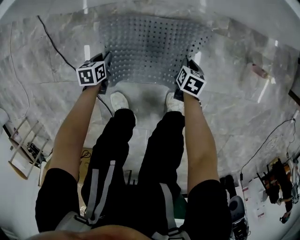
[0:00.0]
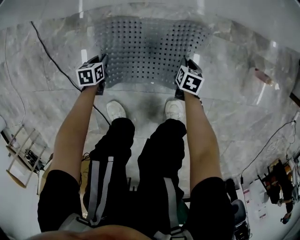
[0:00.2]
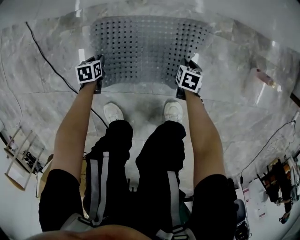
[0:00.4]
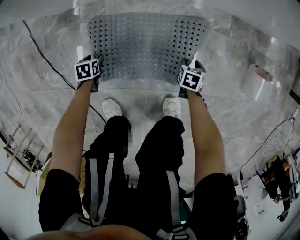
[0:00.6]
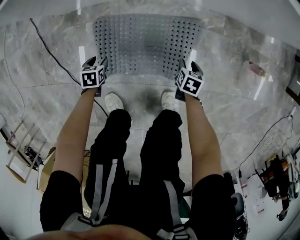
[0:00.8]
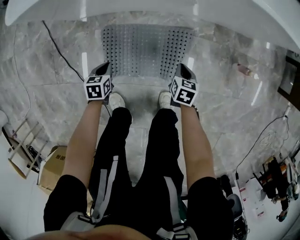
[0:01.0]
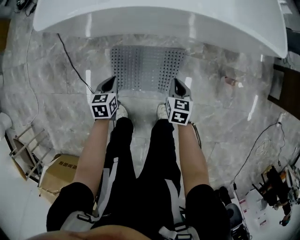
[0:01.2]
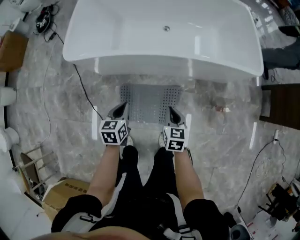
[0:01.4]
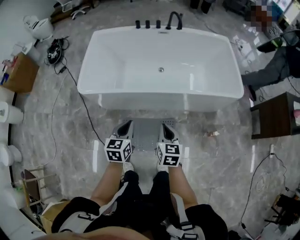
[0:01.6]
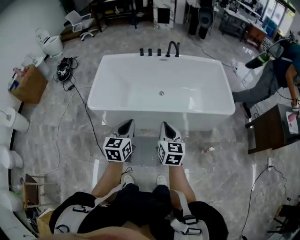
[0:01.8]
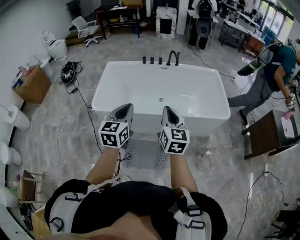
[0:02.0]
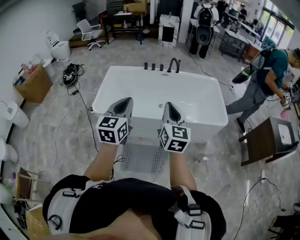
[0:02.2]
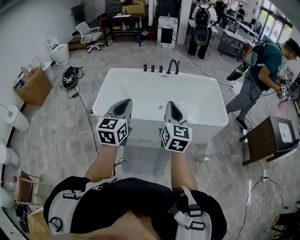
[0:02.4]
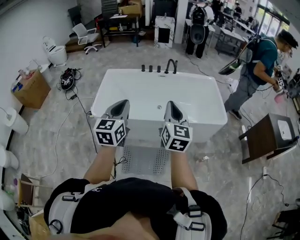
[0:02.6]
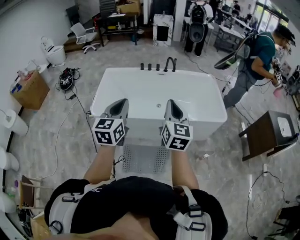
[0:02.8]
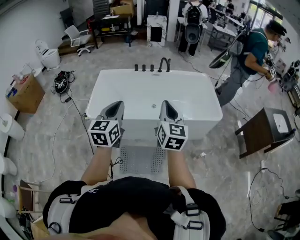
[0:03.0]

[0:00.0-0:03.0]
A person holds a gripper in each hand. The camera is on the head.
0:00.0 to 0:01.6: Both grippers travel together upward, approximately 60 cm. The left gripper tilts its fingers some 30 degrees upward, and opens, then closes once more; the right gripper tips its fingers upward by about 40 degrees, and opens and closes again.
0:01.6 to 0:03.0: Both grippers travel together upward, about 35 cm. The right gripper changes its angle by roughly 30 degrees. Meanwhile the left gripper turns by approximately 30 degrees.

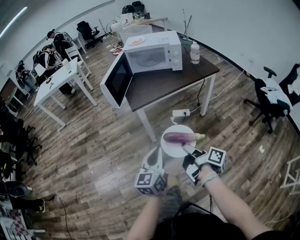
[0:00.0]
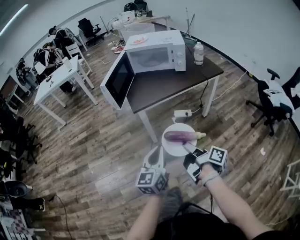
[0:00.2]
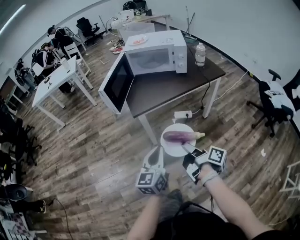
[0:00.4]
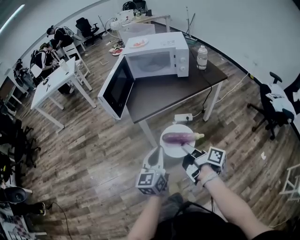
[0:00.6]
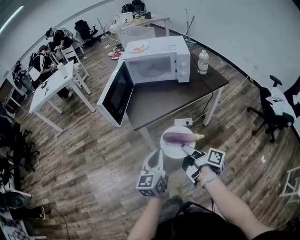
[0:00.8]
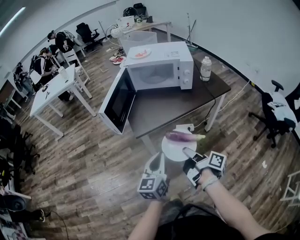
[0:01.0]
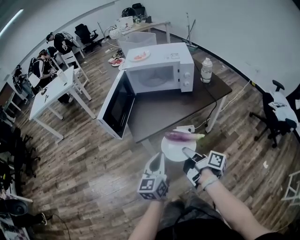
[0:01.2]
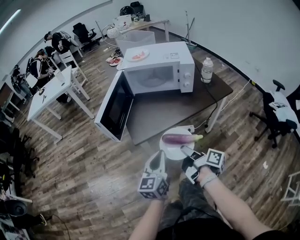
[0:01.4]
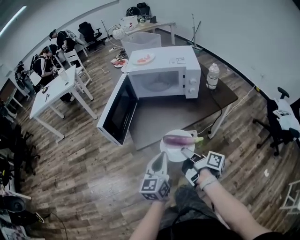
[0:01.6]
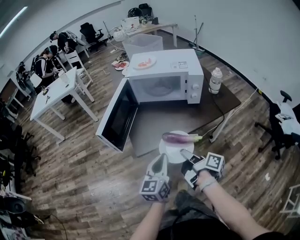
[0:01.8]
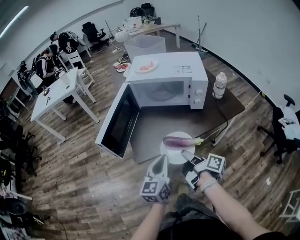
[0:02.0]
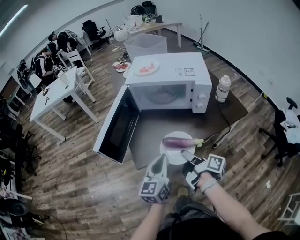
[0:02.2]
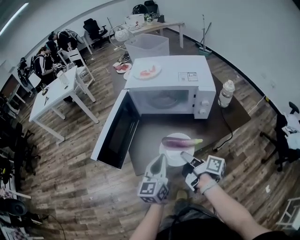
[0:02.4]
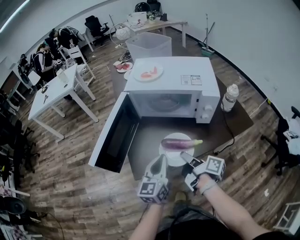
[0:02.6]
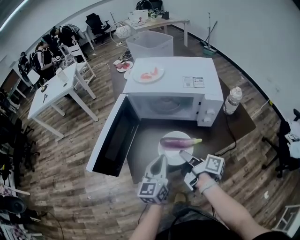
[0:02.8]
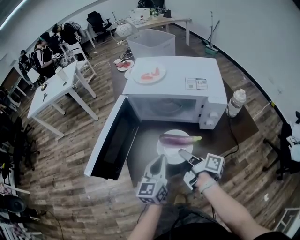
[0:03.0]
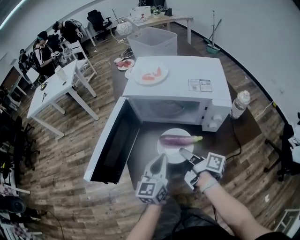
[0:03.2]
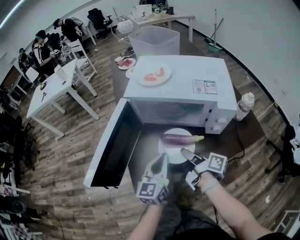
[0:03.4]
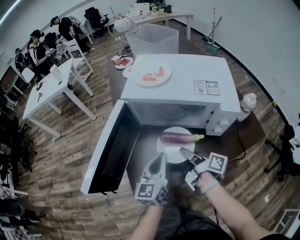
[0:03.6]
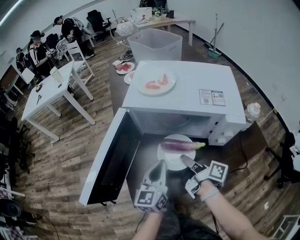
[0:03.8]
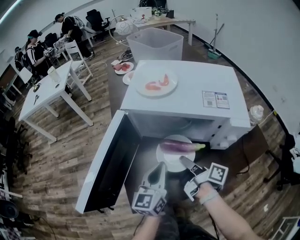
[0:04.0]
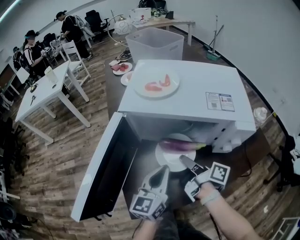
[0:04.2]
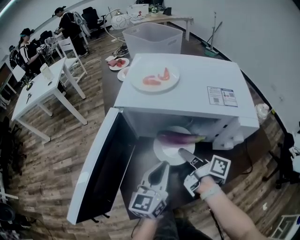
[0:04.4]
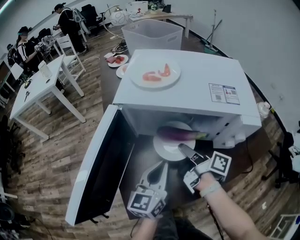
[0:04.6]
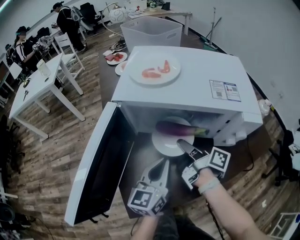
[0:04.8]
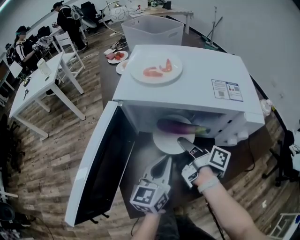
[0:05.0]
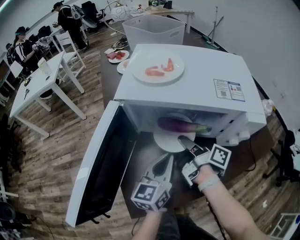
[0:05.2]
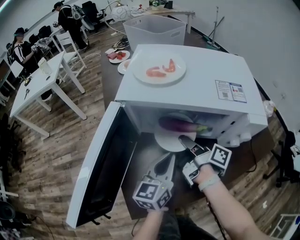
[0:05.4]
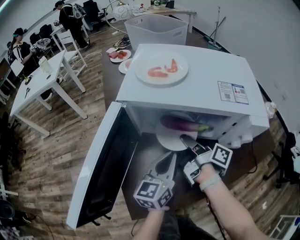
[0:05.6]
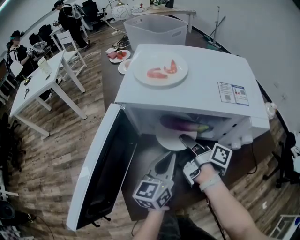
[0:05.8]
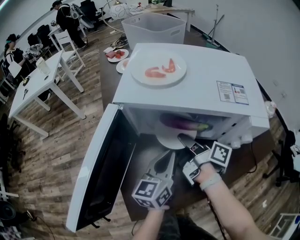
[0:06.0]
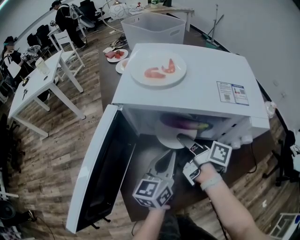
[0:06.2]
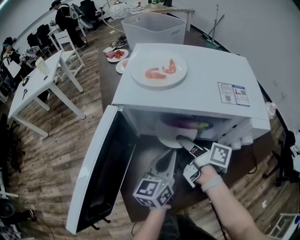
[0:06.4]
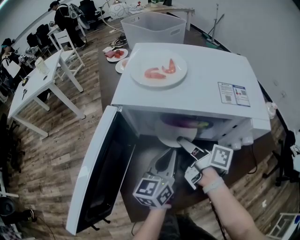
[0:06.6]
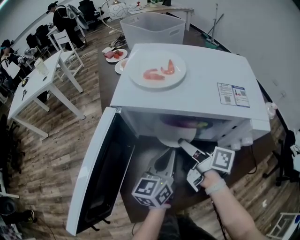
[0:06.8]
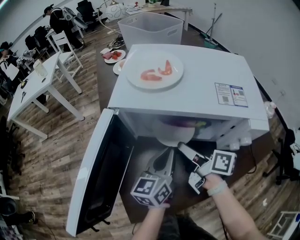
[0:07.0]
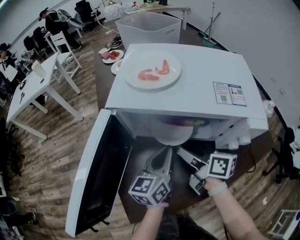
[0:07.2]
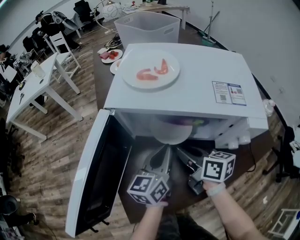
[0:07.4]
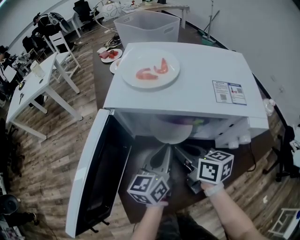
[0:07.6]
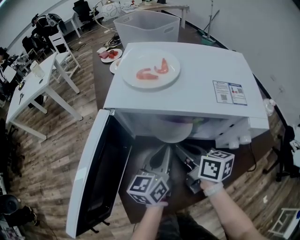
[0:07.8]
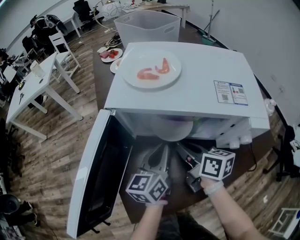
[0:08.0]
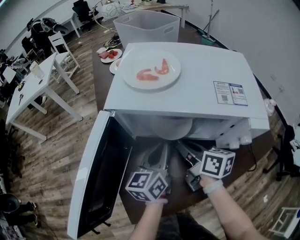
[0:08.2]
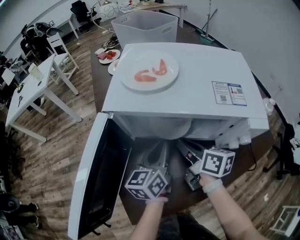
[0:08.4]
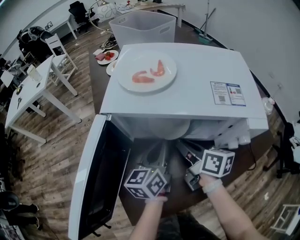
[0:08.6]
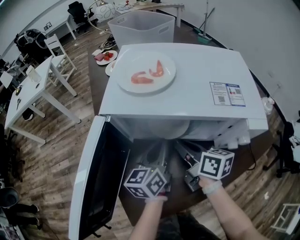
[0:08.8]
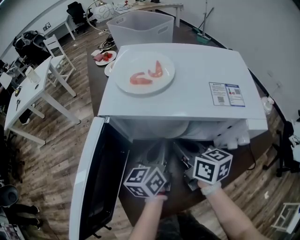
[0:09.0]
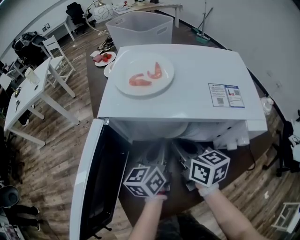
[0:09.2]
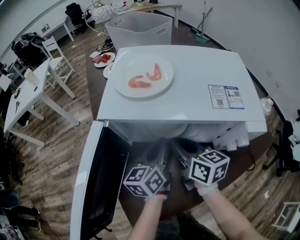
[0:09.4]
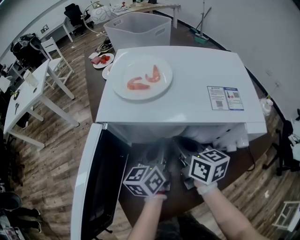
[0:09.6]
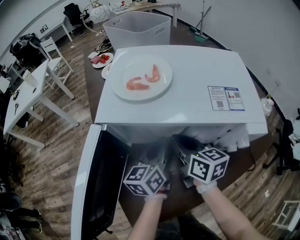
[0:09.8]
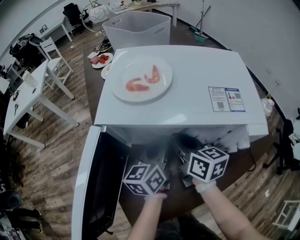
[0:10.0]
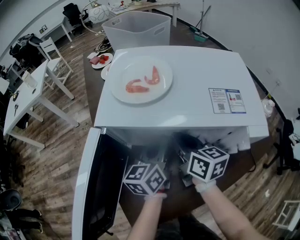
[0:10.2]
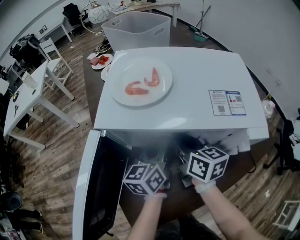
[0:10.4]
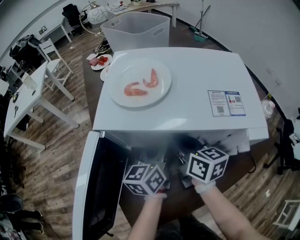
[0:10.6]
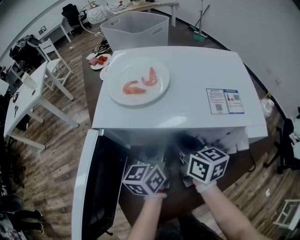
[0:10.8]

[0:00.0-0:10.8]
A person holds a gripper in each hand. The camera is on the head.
0:00.0 to 0:01.6: Both grippers move forward, approximately 25 cm.
0:01.6 to 0:03.0: The grippers both shift forward by roughly 25 cm.
0:03.0 to 0:04.6: The two grippers go about 15 cm forward.
0:04.6 to 0:06.2: The left gripper shifts by about 5 cm.
0:06.2 to 0:07.8: The right gripper turns by some 40 degrees.
0:07.8 to 0:09.2: The grippers stay close to where they were, moving slightly.
0:09.2 to 0:10.8: The grippers stay close to where they were, moving slightly.

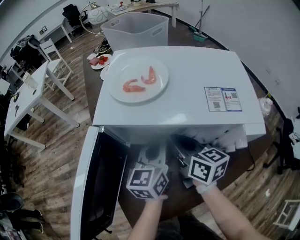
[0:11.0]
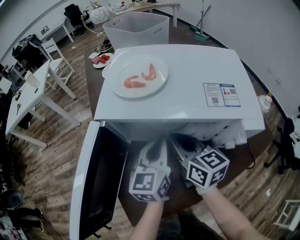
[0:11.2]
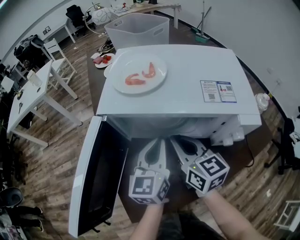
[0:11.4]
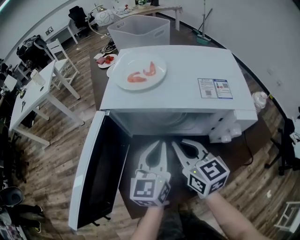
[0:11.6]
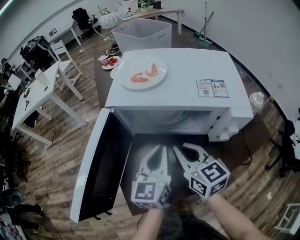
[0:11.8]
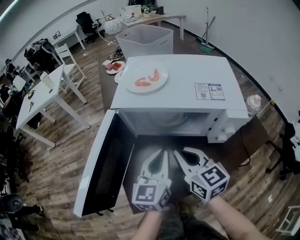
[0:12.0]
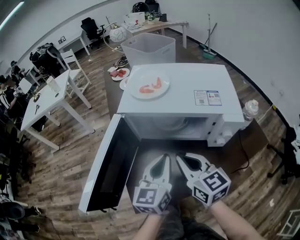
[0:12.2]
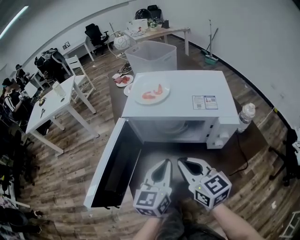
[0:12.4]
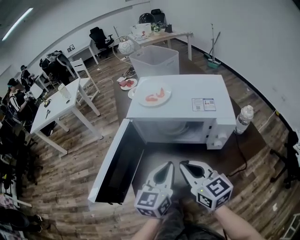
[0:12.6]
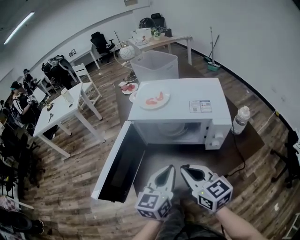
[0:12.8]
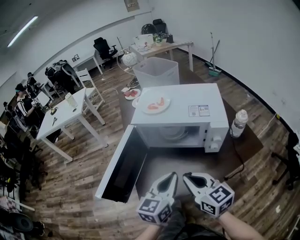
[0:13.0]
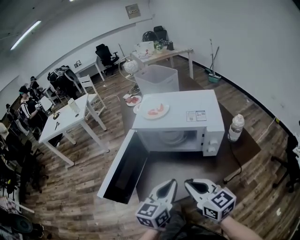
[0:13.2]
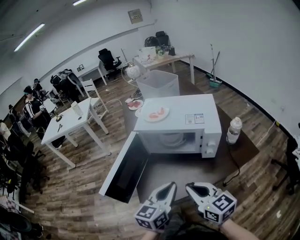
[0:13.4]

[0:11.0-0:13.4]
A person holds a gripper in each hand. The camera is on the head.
0:11.0 to 0:12.2: The two grippers go about 15 cm backward and upward. The right gripper changes its angle by roughly 20 degrees.
0:12.2 to 0:13.4: Both grippers travel together backward, about 15 cm.

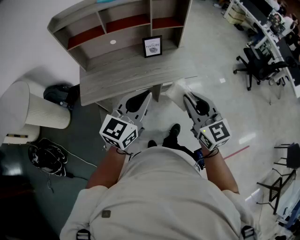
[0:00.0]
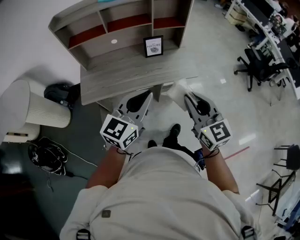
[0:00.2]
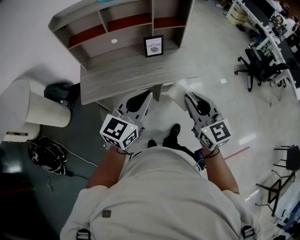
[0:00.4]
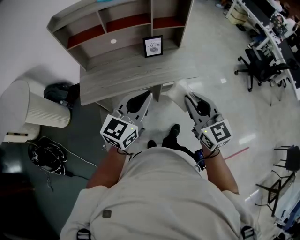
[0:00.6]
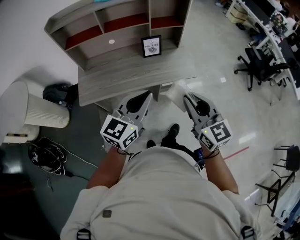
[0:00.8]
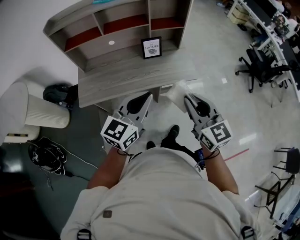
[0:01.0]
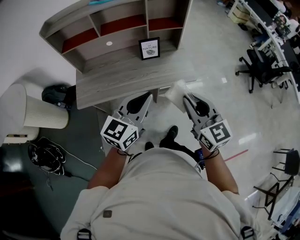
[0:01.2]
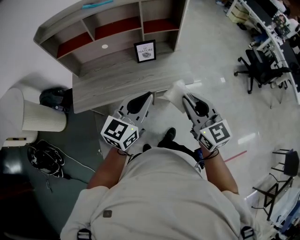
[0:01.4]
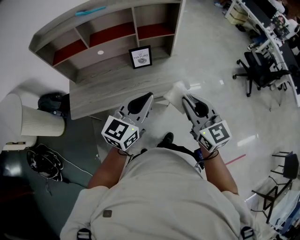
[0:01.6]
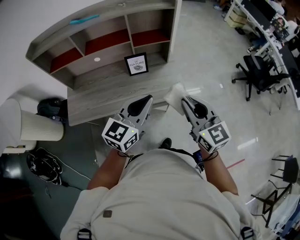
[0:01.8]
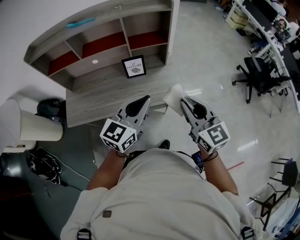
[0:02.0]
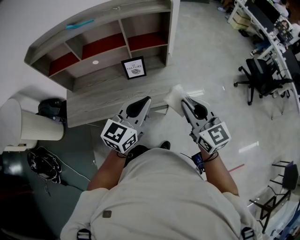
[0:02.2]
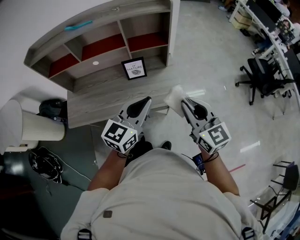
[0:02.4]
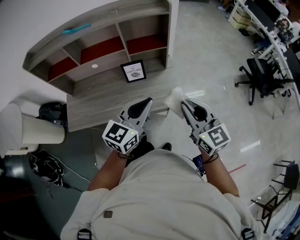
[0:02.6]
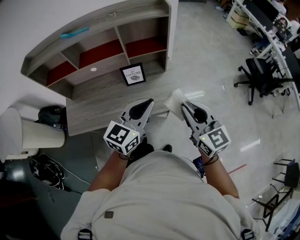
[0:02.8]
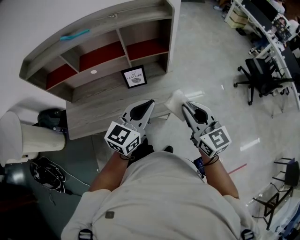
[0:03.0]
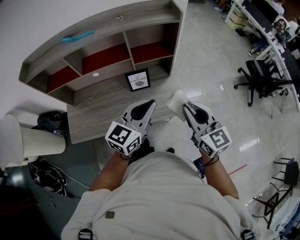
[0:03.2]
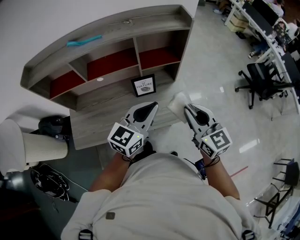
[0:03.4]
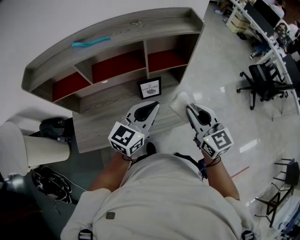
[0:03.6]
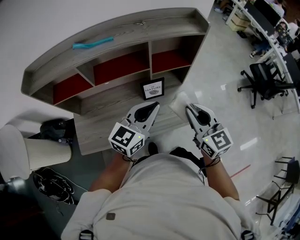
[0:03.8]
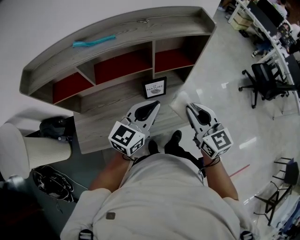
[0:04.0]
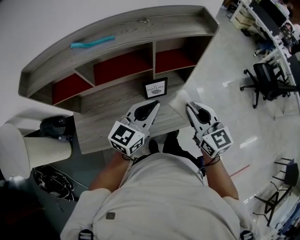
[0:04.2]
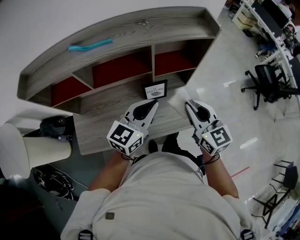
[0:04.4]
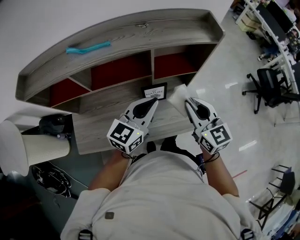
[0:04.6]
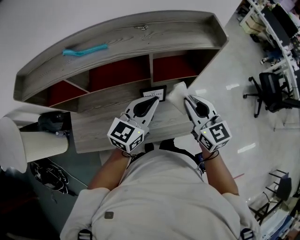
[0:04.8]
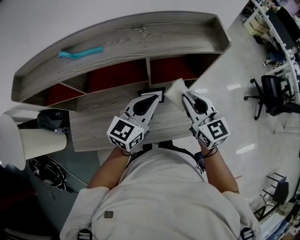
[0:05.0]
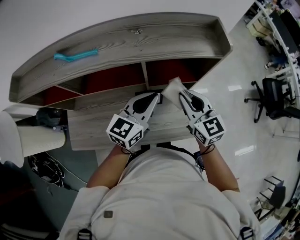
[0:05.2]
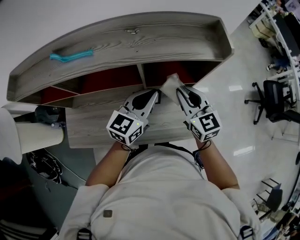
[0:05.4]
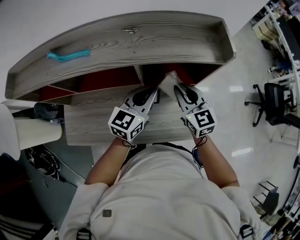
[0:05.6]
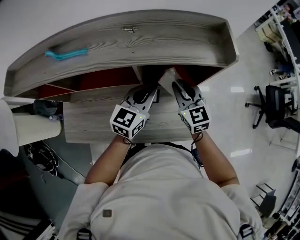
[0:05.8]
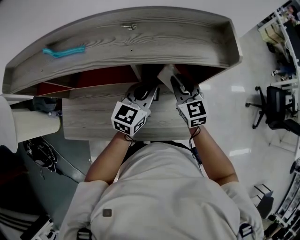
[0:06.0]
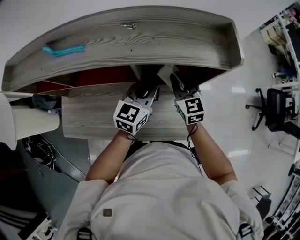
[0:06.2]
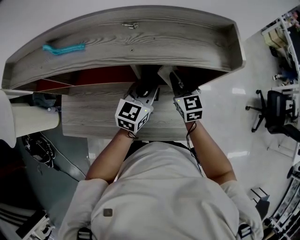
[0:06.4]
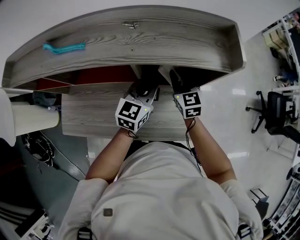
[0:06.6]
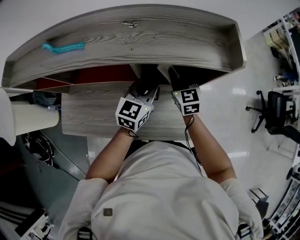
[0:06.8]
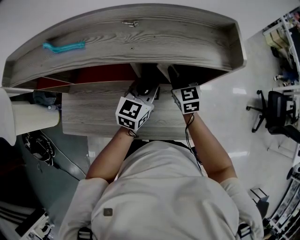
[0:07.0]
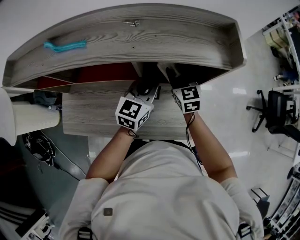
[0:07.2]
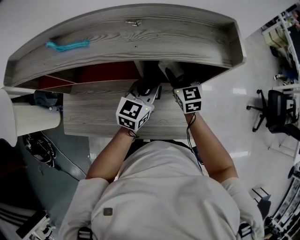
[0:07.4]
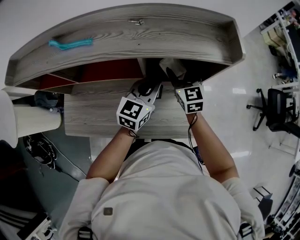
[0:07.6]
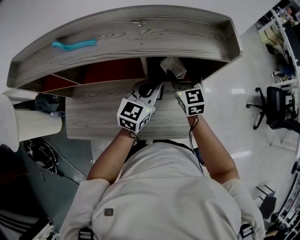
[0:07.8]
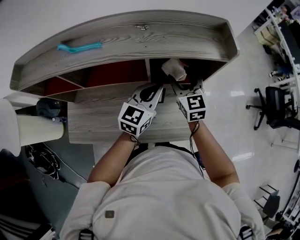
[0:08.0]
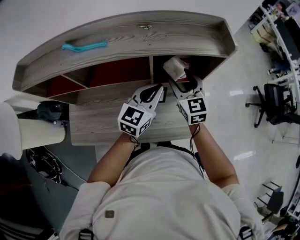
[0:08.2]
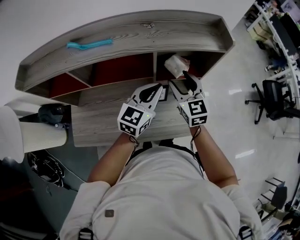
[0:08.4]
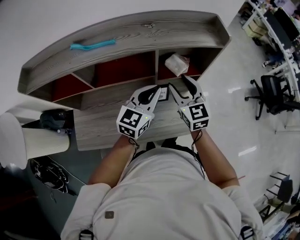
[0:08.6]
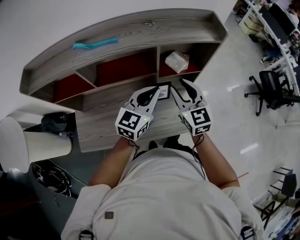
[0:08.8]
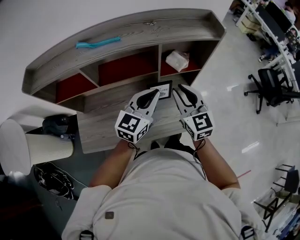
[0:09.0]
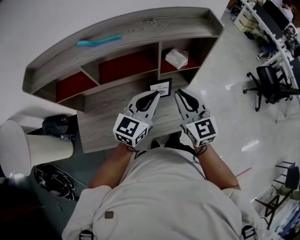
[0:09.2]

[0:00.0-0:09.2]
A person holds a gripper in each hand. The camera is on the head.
0:00.0 to 0:01.6: Both grippers travel together forward and to the right, approximately 15 cm.
0:01.6 to 0:03.0: Both grippers move forward and to the right, about 15 cm.
0:03.0 to 0:04.6: Both grippers travel together forward and to the left, roughly 25 cm.
0:04.6 to 0:06.2: The grippers both shift forward and downward by about 20 cm.
0:06.2 to 0:07.6: The right gripper opens up.
0:07.6 to 0:09.2: The two grippers go some 25 cm backward and upward. The right gripper closes its fingers.
